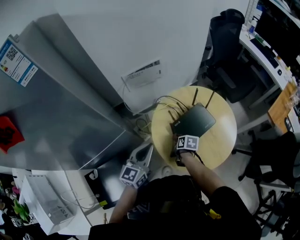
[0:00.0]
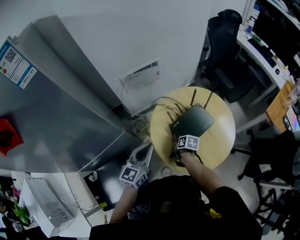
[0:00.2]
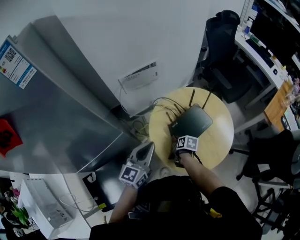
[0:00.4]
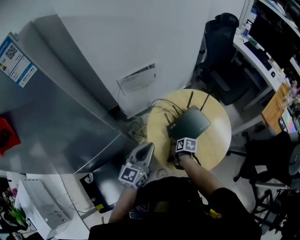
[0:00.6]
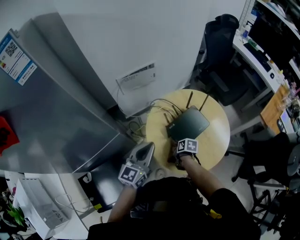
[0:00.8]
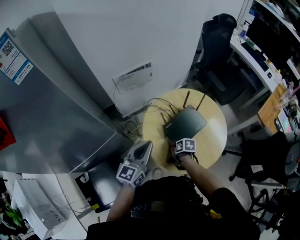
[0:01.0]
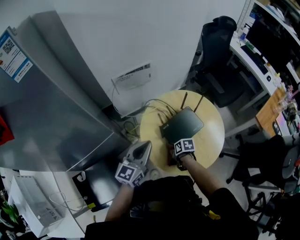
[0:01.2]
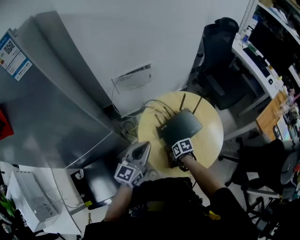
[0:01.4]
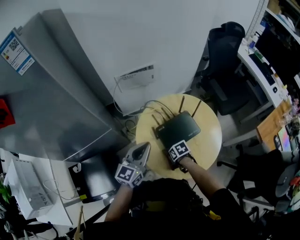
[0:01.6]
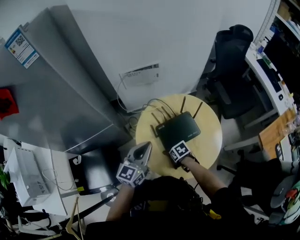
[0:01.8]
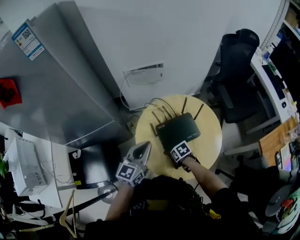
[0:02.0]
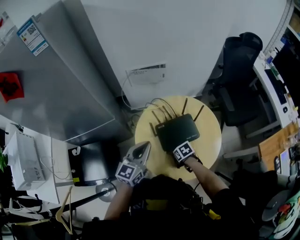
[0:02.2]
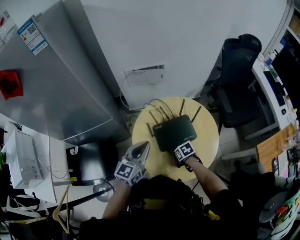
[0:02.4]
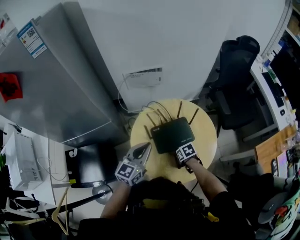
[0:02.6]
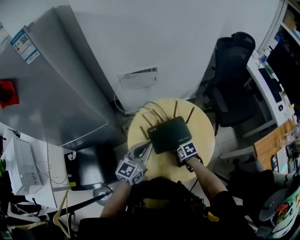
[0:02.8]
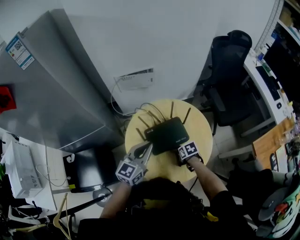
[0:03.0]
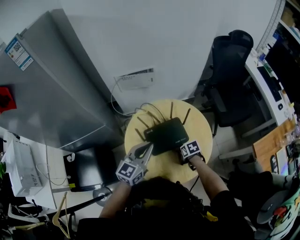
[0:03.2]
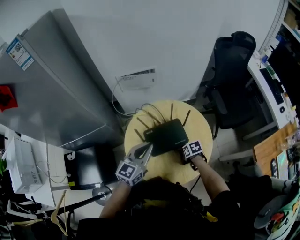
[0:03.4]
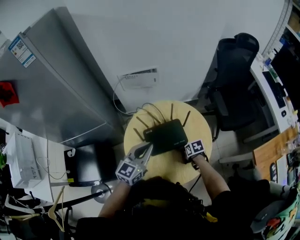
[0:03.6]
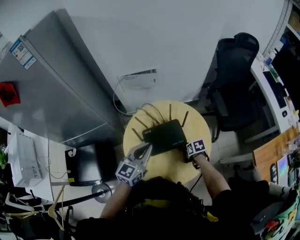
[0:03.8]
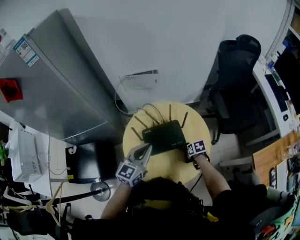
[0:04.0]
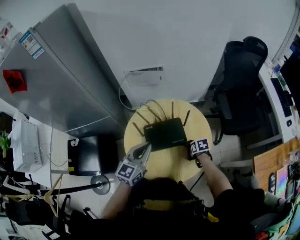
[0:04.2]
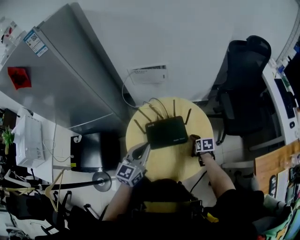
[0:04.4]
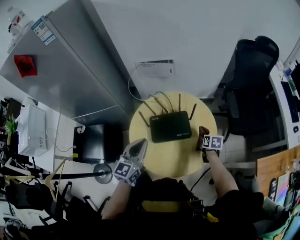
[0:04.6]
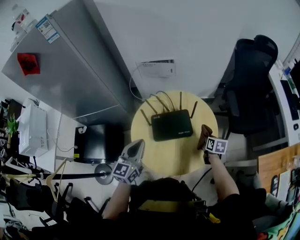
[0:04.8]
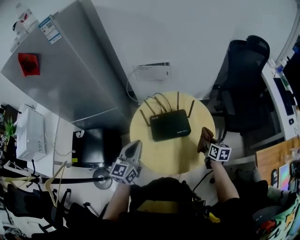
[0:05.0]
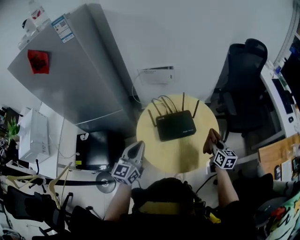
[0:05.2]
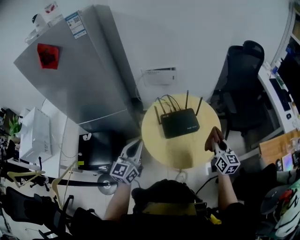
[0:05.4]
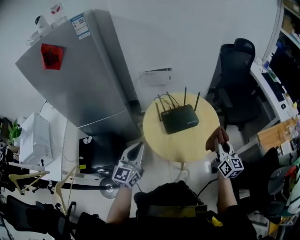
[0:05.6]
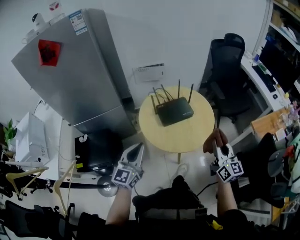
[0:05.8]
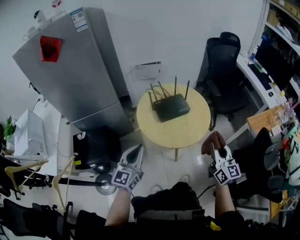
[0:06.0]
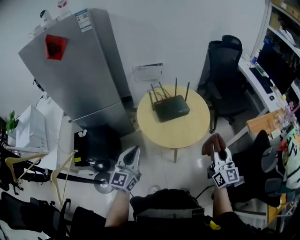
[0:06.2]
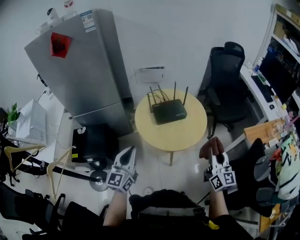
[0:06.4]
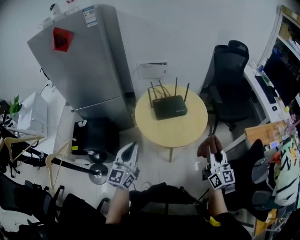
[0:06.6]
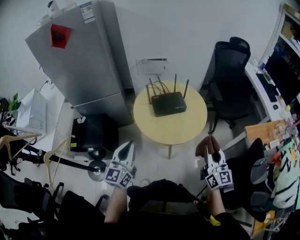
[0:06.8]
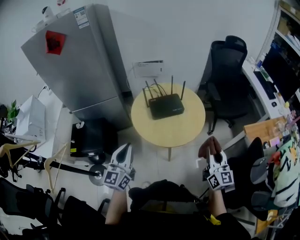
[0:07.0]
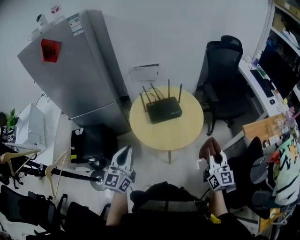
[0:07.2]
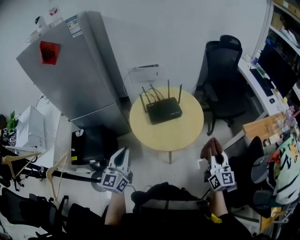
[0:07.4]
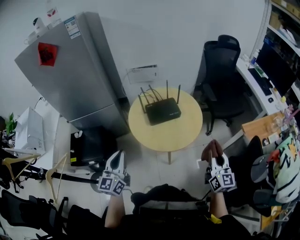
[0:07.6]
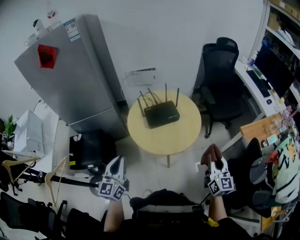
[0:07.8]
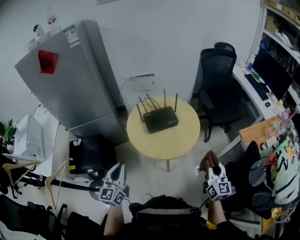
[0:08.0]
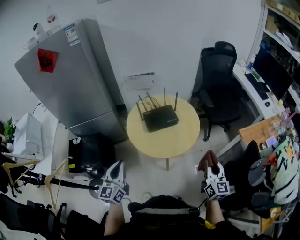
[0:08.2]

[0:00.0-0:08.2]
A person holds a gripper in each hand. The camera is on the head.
0:00.0 to 0:01.6: The left gripper changes place by approximately 10 cm. The right gripper ends up approximately 10 cm from where it was, and changes its angle by about 40 degrees.
0:01.6 to 0:03.2: The right gripper moves to the right, about 15 cm; the left gripper is displaced to the right by approximately 10 cm.
0:03.2 to 0:05.0: The right gripper is displaced to the right and upward by about 15 cm, and tips its fingers upward by about 30 degrees, while the left gripper shifts about 10 cm backward and to the left, and swivels about 30 degrees.
0:05.0 to 0:06.6: The right gripper is displaced backward and upward by some 40 cm, and points its fingers about 40 degrees further upward; the left gripper heads backward, covering approximately 25 cm.
0:06.6 to 0:08.2: The right gripper travels downward by roughly 5 cm. Meanwhile the left gripper changes place by approximately 5 cm.

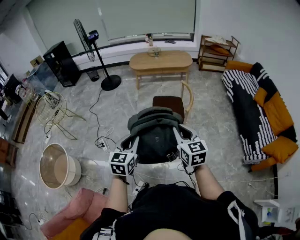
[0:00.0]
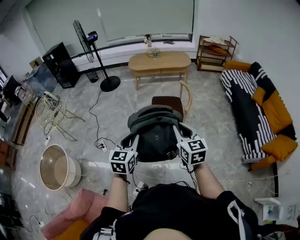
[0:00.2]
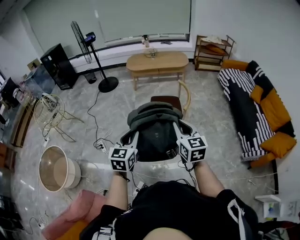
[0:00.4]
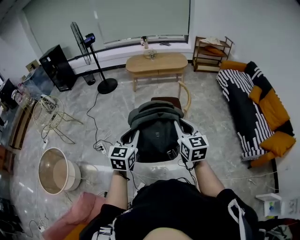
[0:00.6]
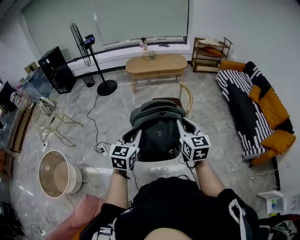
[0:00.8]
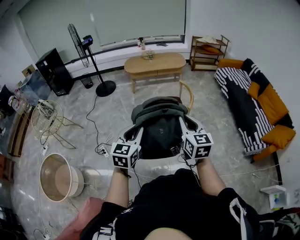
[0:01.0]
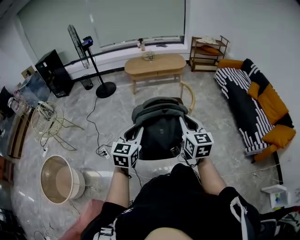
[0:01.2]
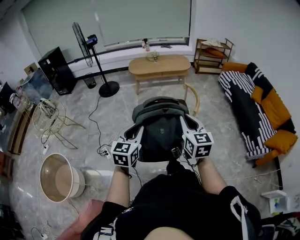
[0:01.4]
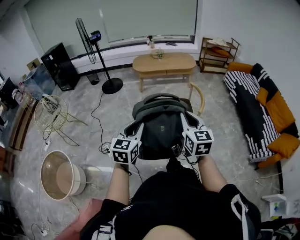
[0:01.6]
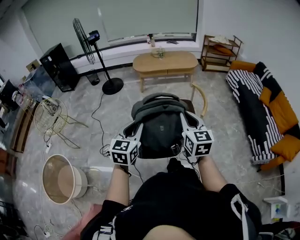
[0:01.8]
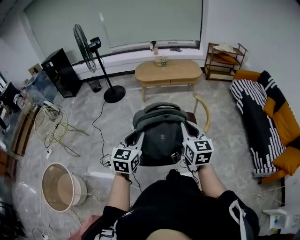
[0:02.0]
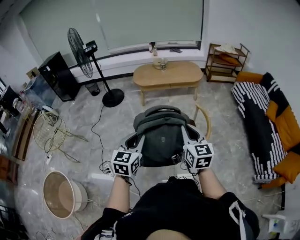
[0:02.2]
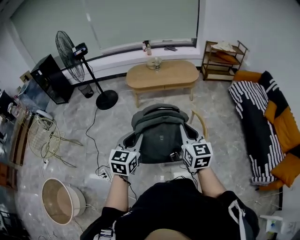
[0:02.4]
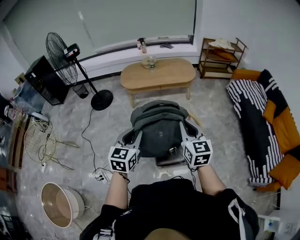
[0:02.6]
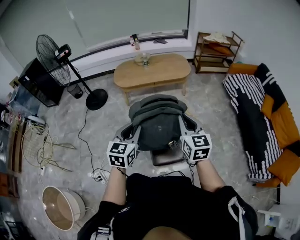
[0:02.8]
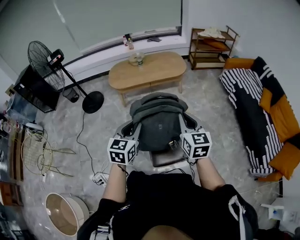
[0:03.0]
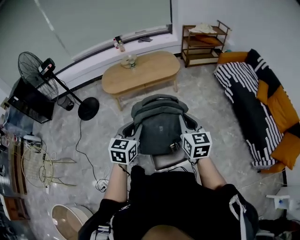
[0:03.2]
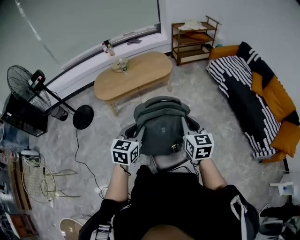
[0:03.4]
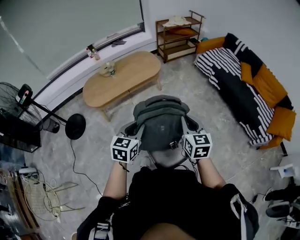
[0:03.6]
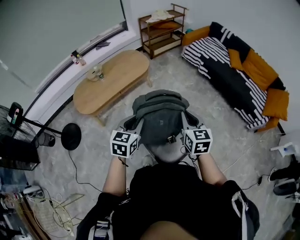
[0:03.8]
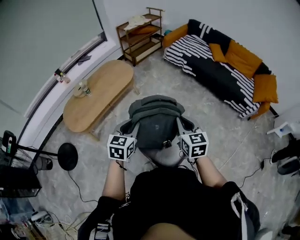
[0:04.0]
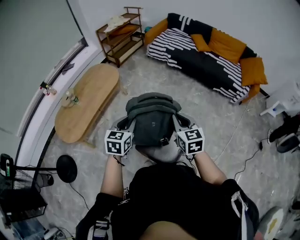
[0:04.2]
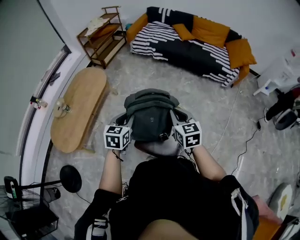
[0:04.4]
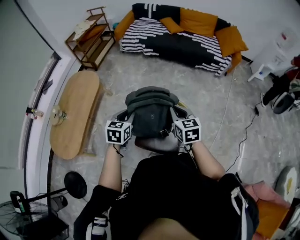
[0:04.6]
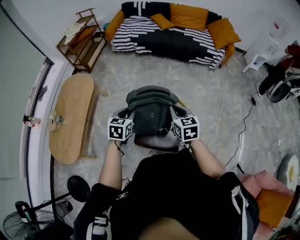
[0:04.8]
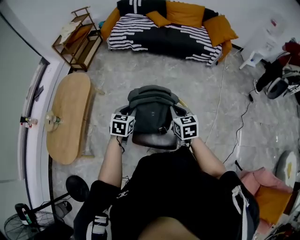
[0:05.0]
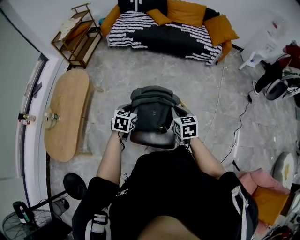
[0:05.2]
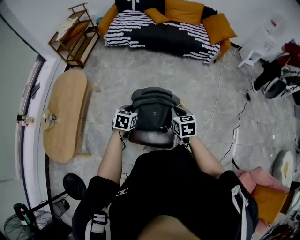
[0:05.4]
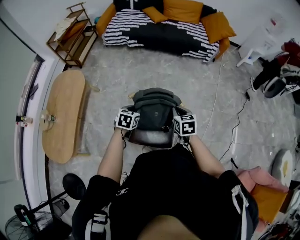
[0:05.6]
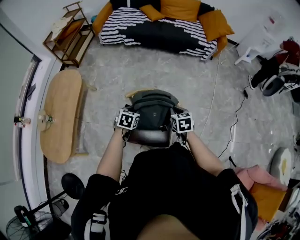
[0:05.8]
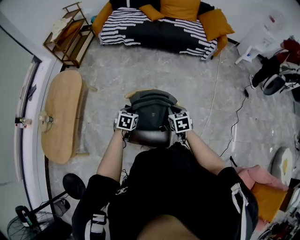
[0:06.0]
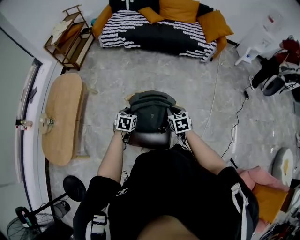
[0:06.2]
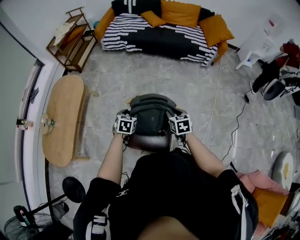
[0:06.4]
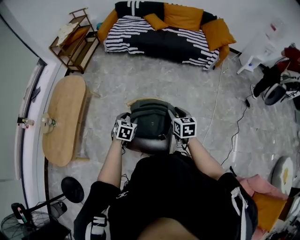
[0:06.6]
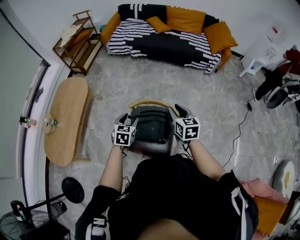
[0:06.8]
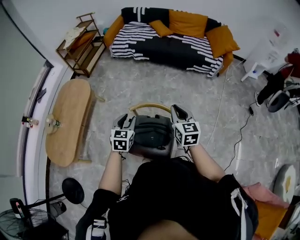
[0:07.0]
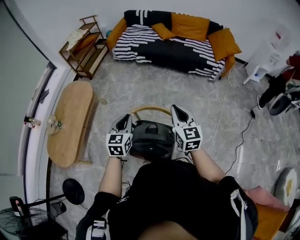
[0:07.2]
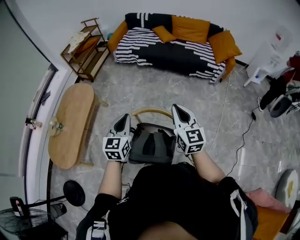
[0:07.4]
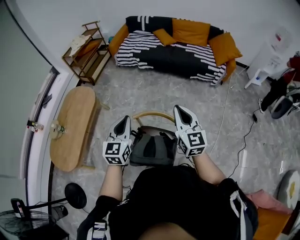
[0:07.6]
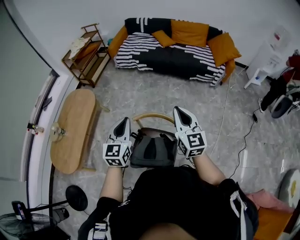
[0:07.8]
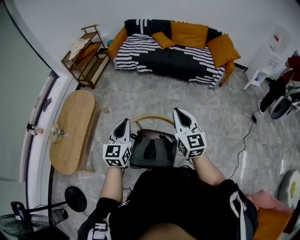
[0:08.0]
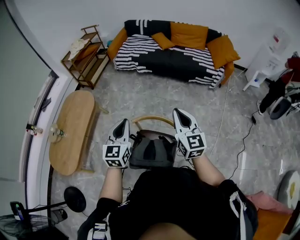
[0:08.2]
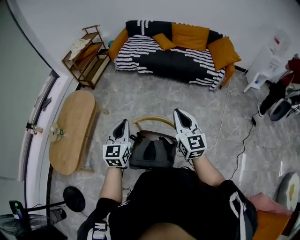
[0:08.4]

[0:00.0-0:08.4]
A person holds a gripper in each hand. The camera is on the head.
0:00.0 to 0:01.4: Both grippers move to the left, approximately 15 cm.
0:01.4 to 0:02.8: The two grippers travel together, forward, some 70 cm.
0:02.8 to 0:04.2: The left gripper moves about 35 cm, and rotates about 50 degrees. Meanwhile the right gripper shifts by about 20 cm, and changes its angle by approximately 50 degrees.
0:04.2 to 0:05.6: The grippers both shift downward by approximately 15 cm. The left gripper changes its angle by roughly 40 degrees. Meanwhile the right gripper changes its angle by roughly 30 degrees.
0:05.6 to 0:07.0: Both grippers move upward, some 10 cm. The left gripper changes its angle by roughly 20 degrees, while the right gripper changes its angle by about 20 degrees, and opens and closes again.
0:07.0 to 0:08.4: Both grippers move upward, approximately 10 cm. The left gripper turns by some 20 degrees, and closes up.

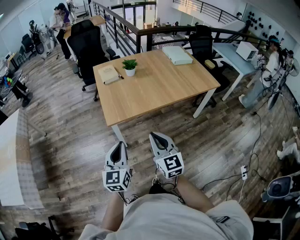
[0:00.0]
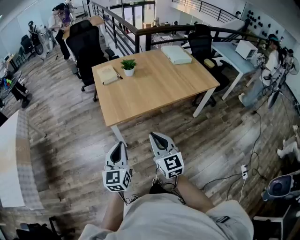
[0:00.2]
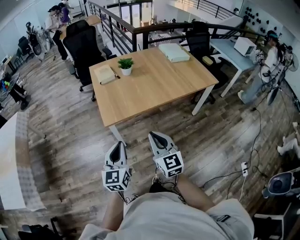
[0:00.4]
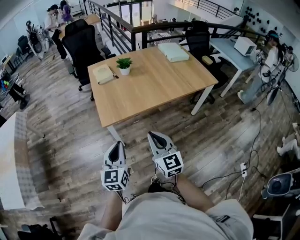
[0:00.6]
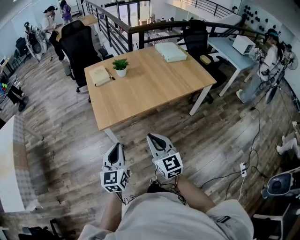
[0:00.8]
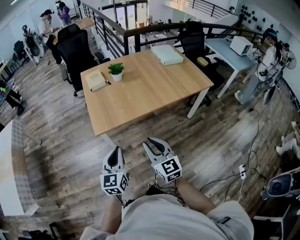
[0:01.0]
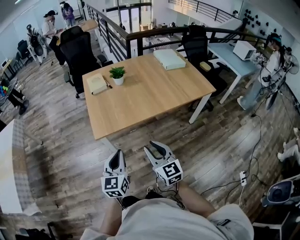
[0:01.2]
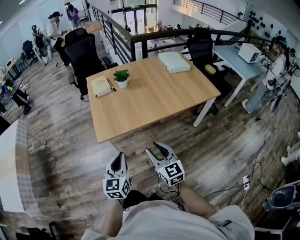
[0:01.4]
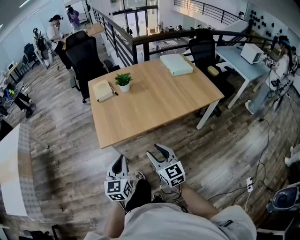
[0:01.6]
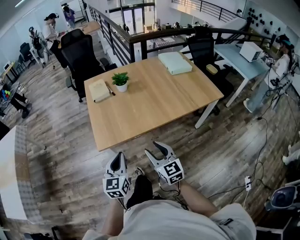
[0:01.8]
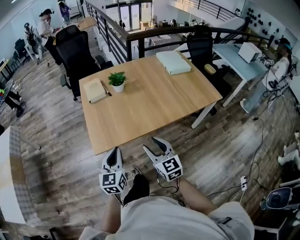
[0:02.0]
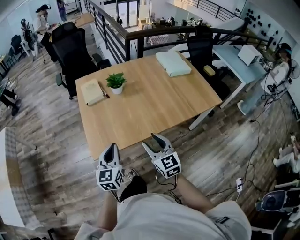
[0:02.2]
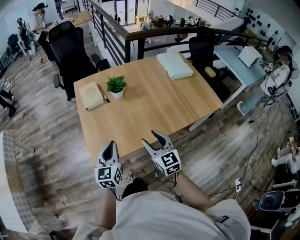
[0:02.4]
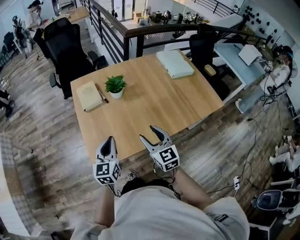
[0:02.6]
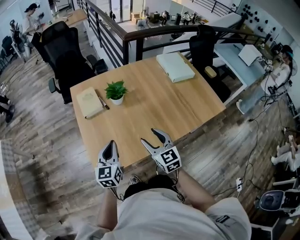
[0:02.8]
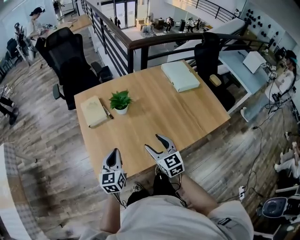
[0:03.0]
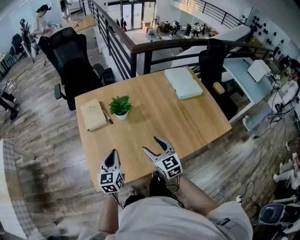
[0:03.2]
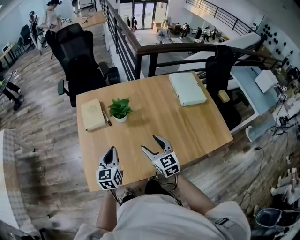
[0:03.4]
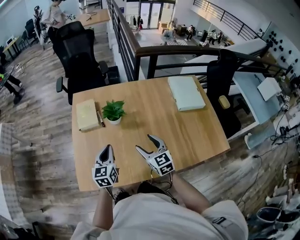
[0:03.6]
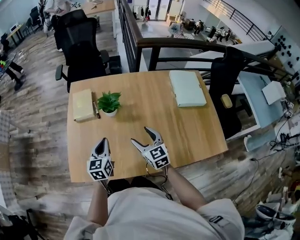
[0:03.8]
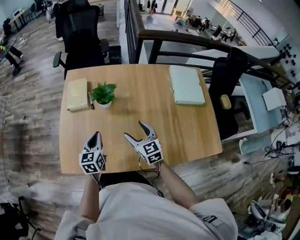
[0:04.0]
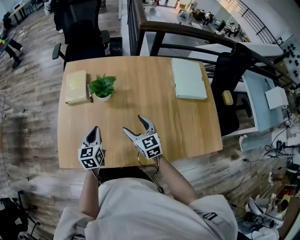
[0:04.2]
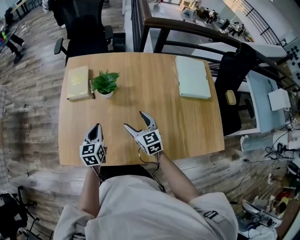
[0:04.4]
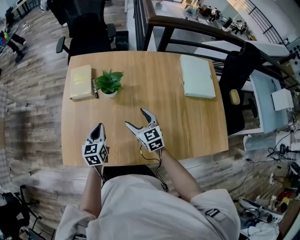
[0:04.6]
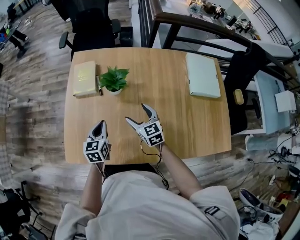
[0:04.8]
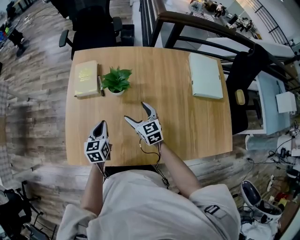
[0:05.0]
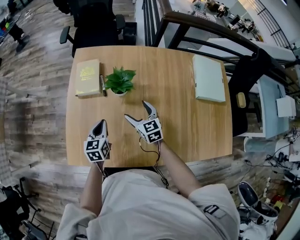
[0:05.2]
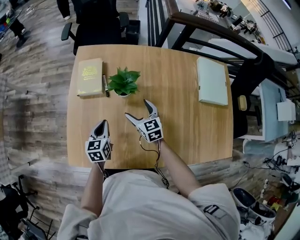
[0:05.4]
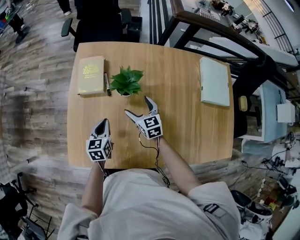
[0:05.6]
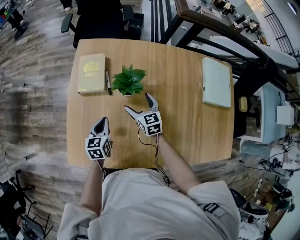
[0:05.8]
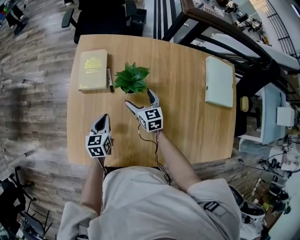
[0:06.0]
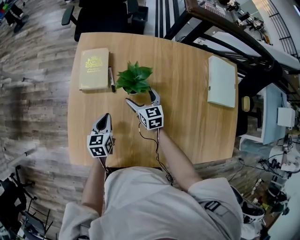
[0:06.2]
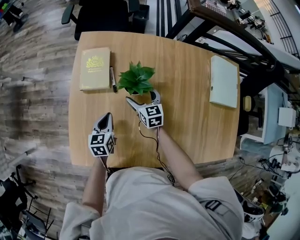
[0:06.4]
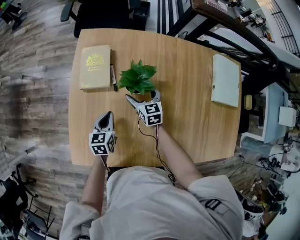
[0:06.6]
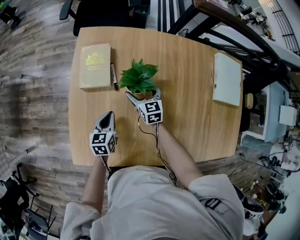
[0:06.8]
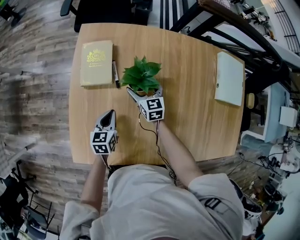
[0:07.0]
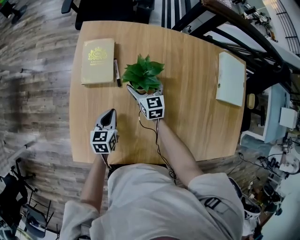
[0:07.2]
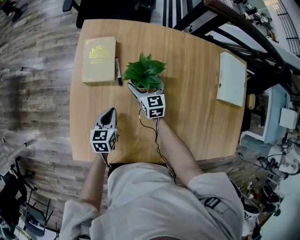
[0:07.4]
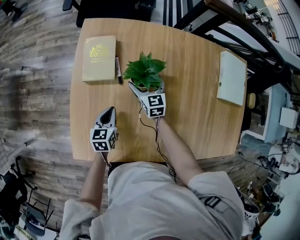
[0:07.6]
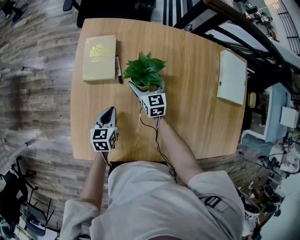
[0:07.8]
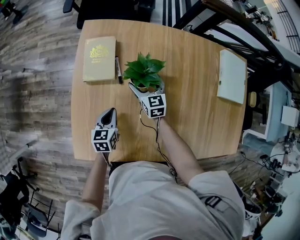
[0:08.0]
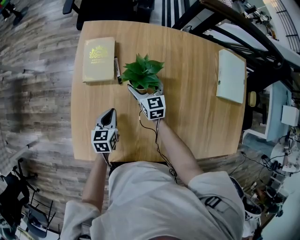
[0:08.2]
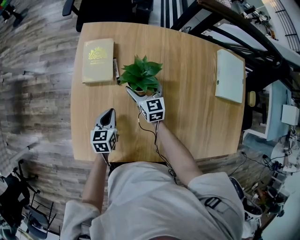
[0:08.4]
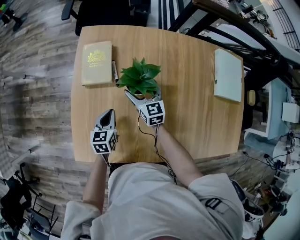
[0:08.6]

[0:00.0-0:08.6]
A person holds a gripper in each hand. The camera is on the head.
0:00.0 to 0:01.4: The left gripper heads to the right and forward, covering approximately 10 cm. Meanwhile the right gripper travels to the right, forward and downward by about 10 cm.
0:01.4 to 0:02.8: The grippers both shift forward by roughly 30 cm.
0:02.8 to 0:04.4: The left gripper is displaced downward, forward and to the right by approximately 20 cm, and rotates about 30 degrees, while the right gripper travels forward, to the right and downward by about 25 cm, and swivels approximately 20 degrees.
0:04.4 to 0:05.8: The right gripper moves forward, downward and to the left, approximately 20 cm. Meanwhile the left gripper is displaced forward, downward and to the left by some 10 cm.
0:05.8 to 0:07.2: The right gripper travels forward by roughly 10 cm.
0:07.2 to 0:08.6: The right gripper ends up about 5 cm from where it was.
